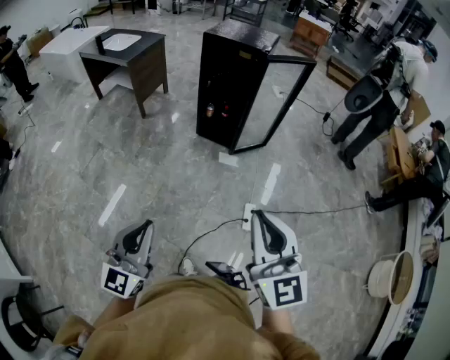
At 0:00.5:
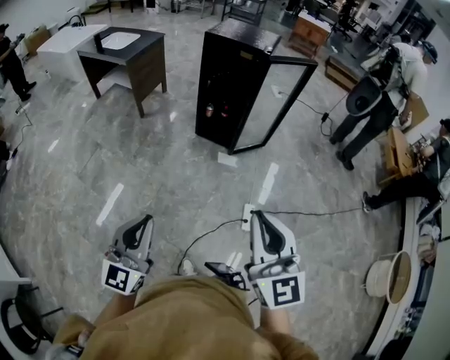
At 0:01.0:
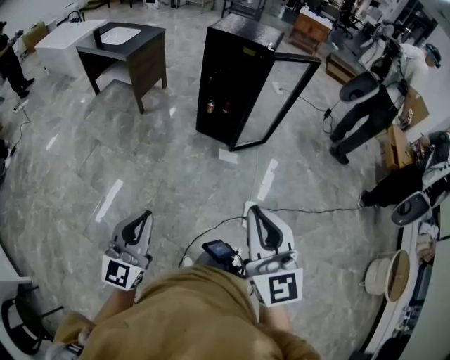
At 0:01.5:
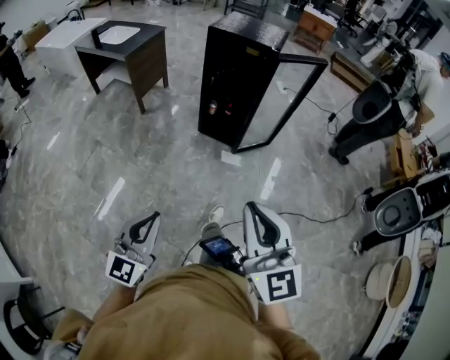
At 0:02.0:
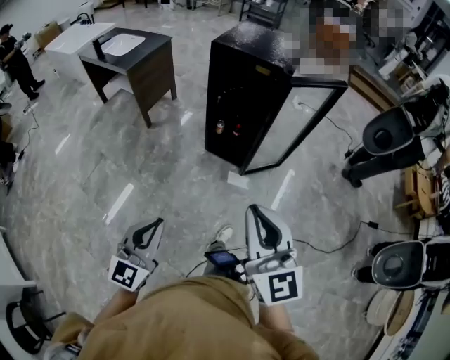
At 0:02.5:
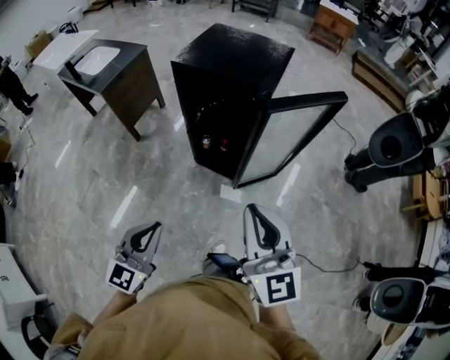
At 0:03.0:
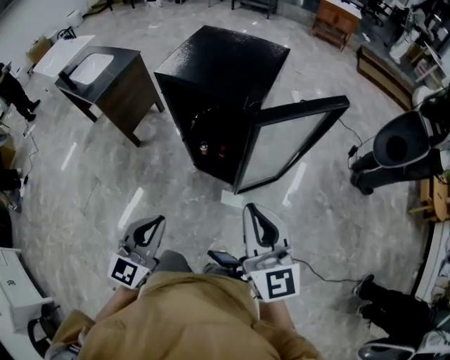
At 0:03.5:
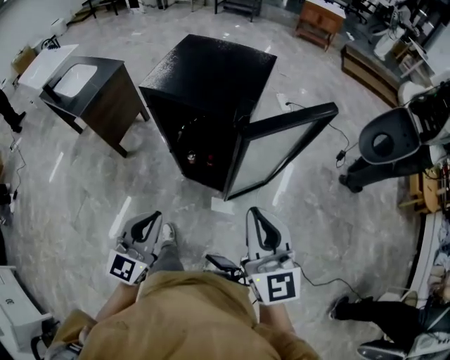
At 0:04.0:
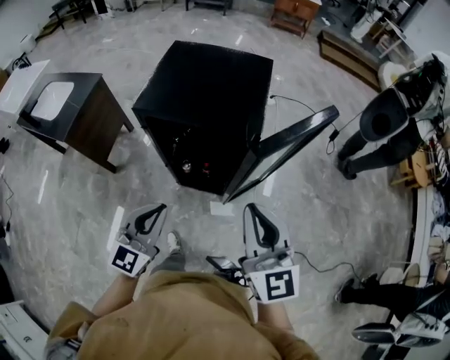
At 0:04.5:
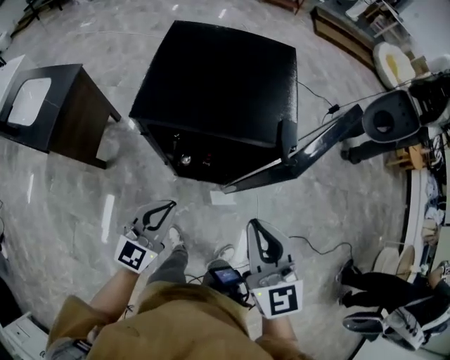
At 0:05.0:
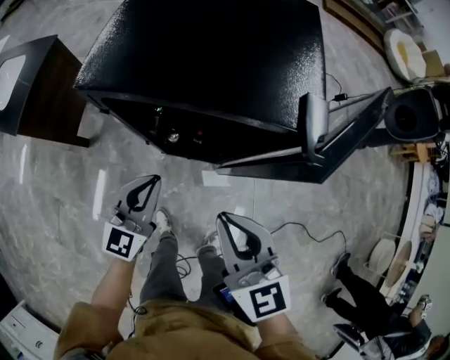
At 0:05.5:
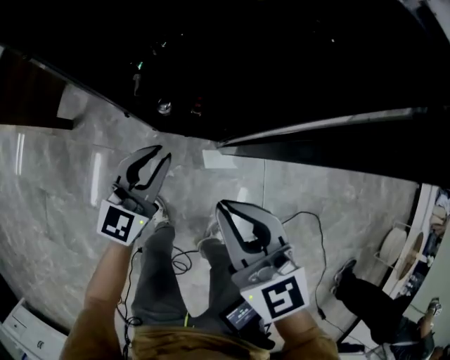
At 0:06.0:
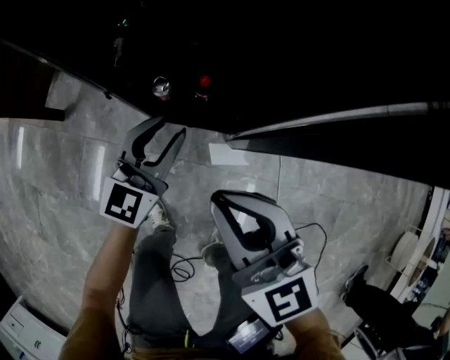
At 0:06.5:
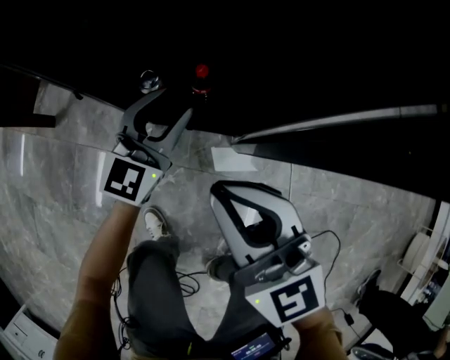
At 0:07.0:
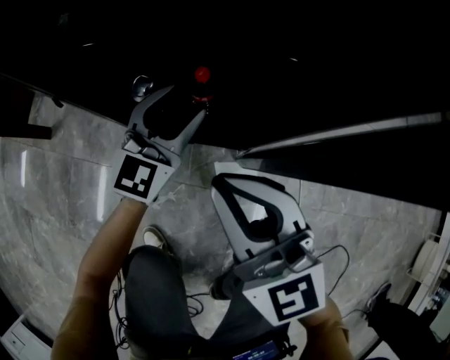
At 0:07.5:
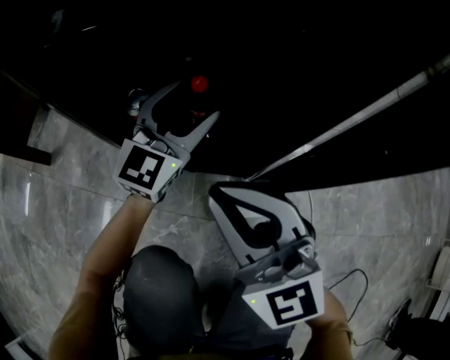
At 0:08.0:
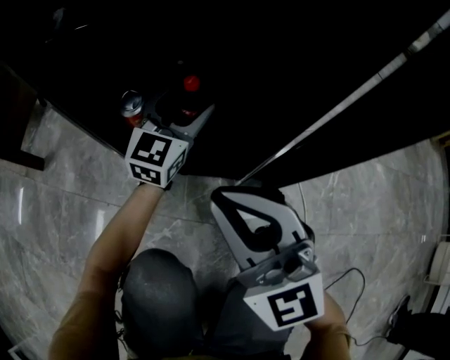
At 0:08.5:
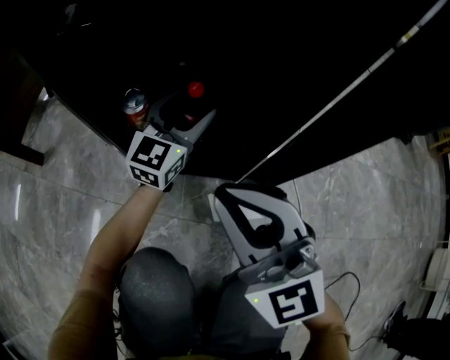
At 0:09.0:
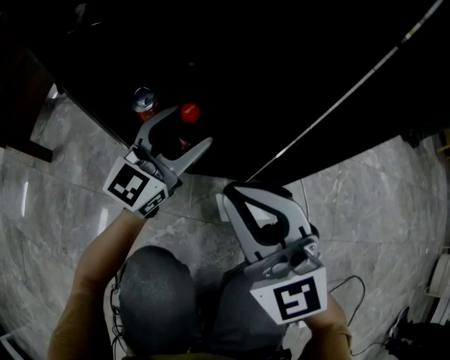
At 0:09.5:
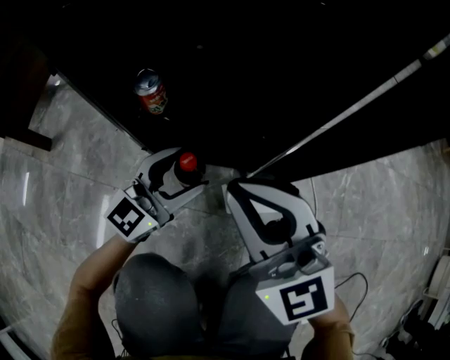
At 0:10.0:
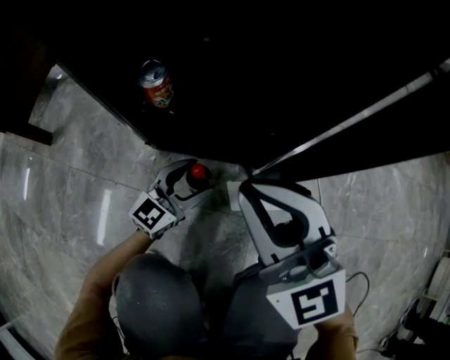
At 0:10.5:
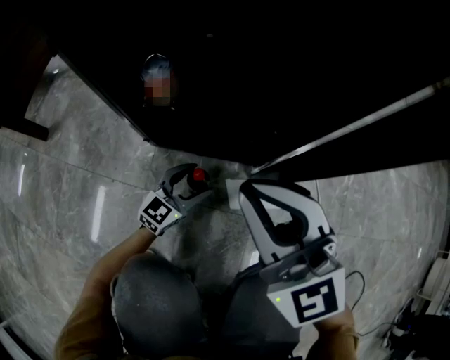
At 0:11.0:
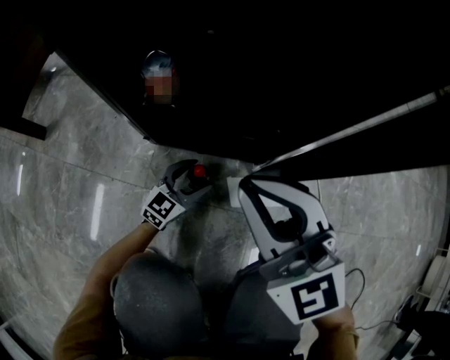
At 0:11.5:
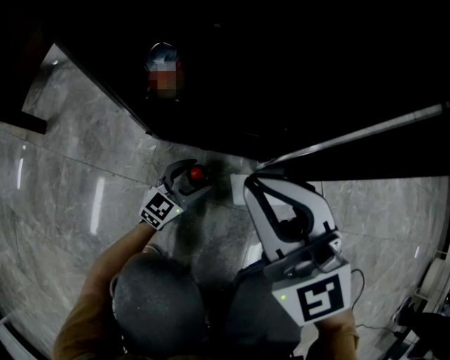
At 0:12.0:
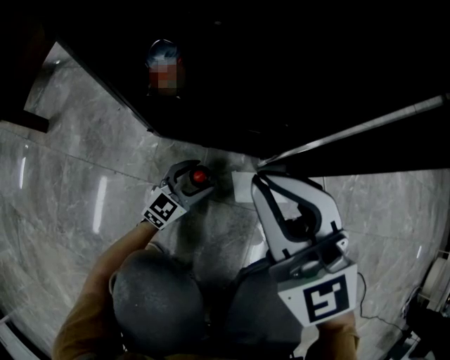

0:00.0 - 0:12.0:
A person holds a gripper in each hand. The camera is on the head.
0:00.0 - 0:02.0: The grippers both shift forward by roughly 30 cm.
0:02.0 - 0:04.0: Both grippers are carried forward, approximately 50 cm.
0:04.0 - 0:06.0: The left gripper travels downward and forward by roughly 50 cm, and opens its fingers. The right gripper travels downward by approximately 50 cm.
0:06.0 - 0:08.0: The right gripper is displaced downward by some 25 cm, and turns by some 20 degrees. The left gripper travels downward and forward by about 25 cm, and opens its fingers.
0:08.0 - 0:10.0: The left gripper shifts roughly 25 cm backward and downward, and turns by approximately 20 degrees.
0:10.0 - 0:12.0: The left gripper moves downward, some 10 cm.

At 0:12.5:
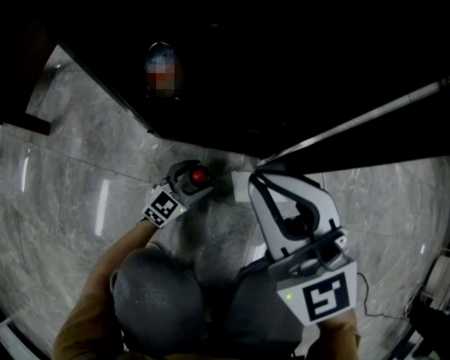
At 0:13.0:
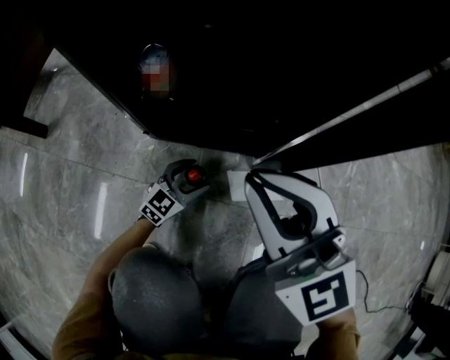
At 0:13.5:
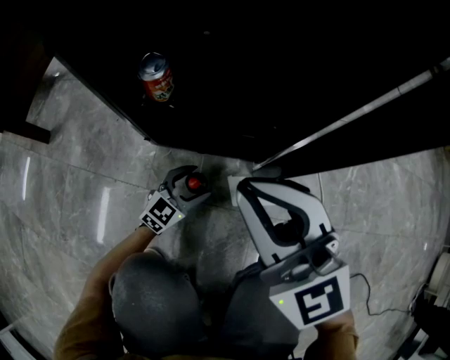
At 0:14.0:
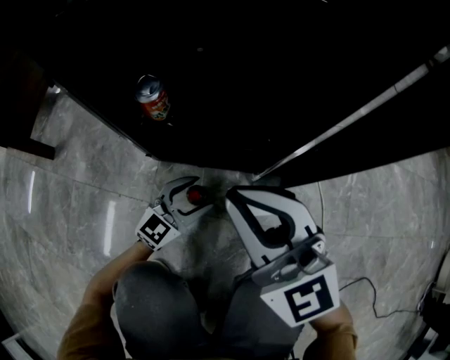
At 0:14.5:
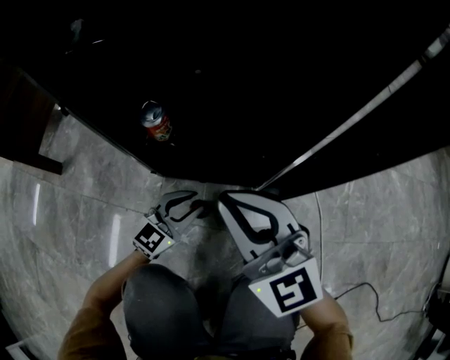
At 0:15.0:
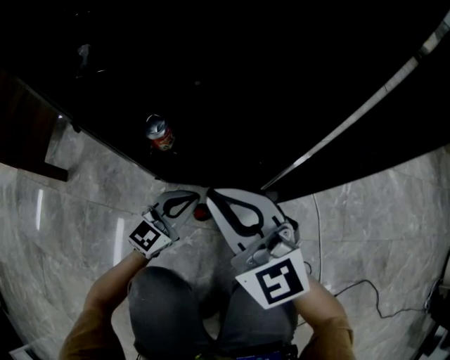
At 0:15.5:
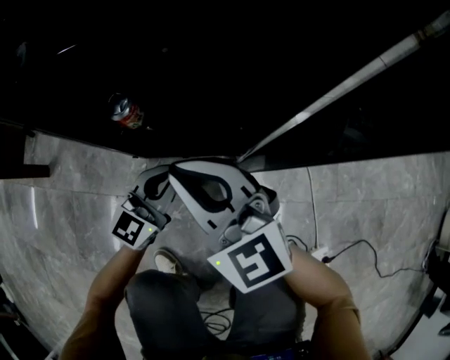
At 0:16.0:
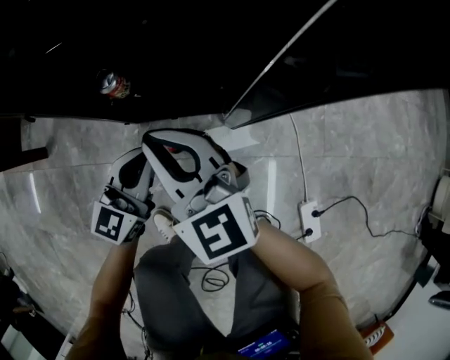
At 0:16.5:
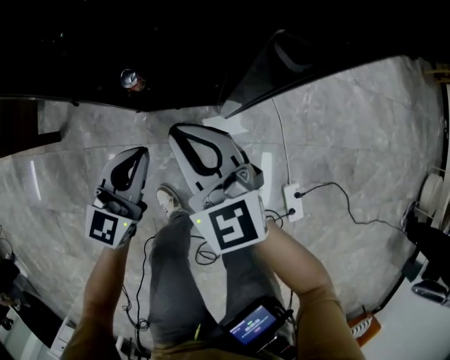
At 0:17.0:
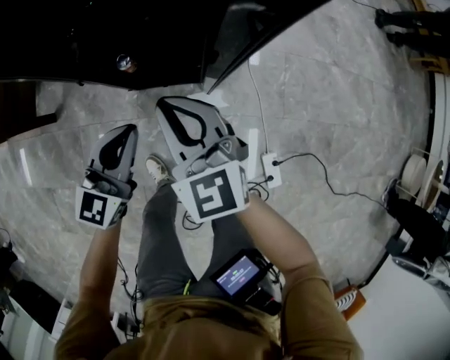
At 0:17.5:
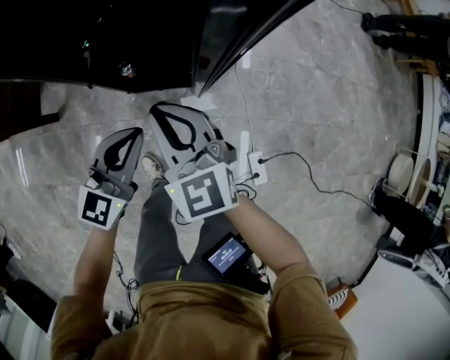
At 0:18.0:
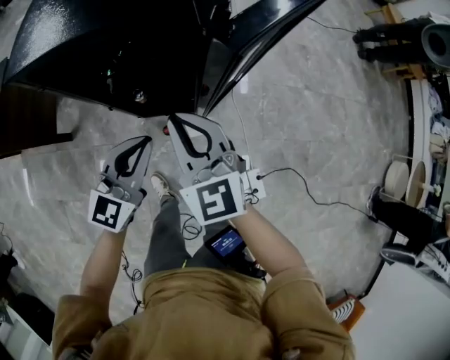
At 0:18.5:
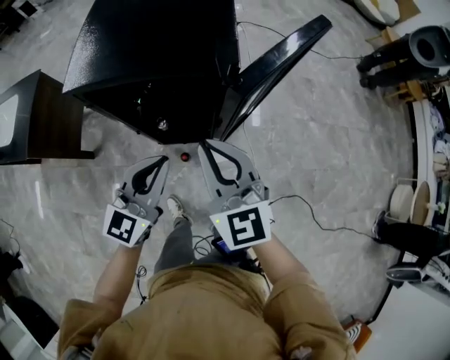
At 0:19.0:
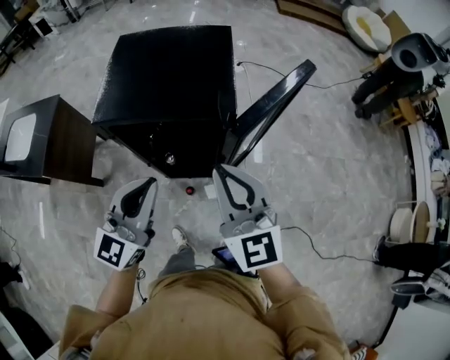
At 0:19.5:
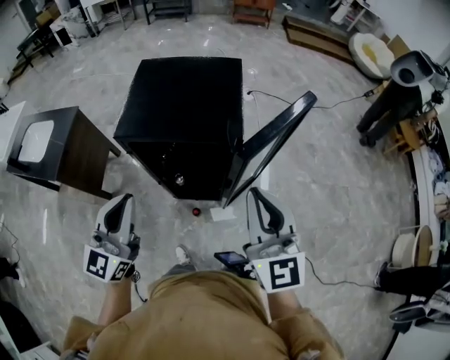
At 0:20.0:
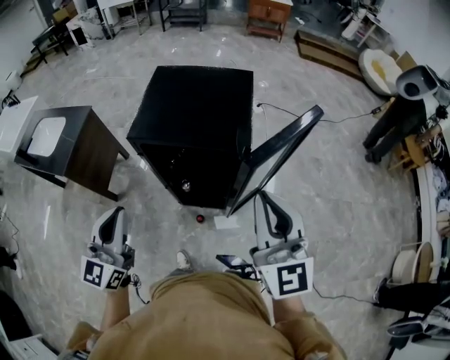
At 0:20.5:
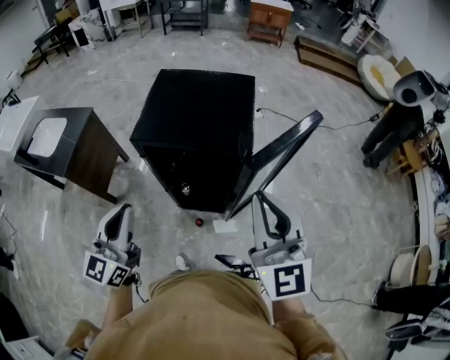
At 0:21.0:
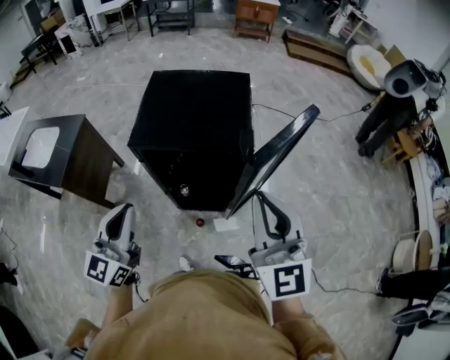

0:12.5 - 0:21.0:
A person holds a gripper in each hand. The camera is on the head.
0:12.5 - 0:14.5: The left gripper is displaced upward by approximately 15 cm, and closes its fingers.
0:14.5 - 0:16.5: The left gripper heads upward, covering some 35 cm, and closes; the right gripper moves upward, about 15 cm.
0:16.5 - 0:19.0: Both grippers move upward, roughly 50 cm. The right gripper turns by some 20 degrees.
0:19.0 - 0:21.0: The left gripper moves to the left, about 10 cm; the right gripper goes approximately 10 cm upward.

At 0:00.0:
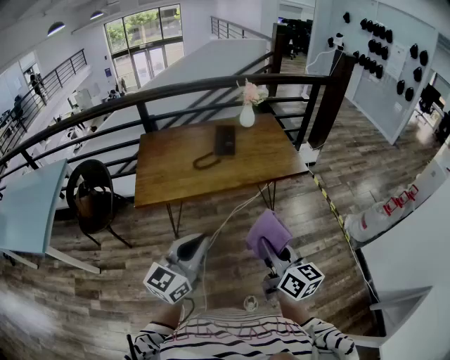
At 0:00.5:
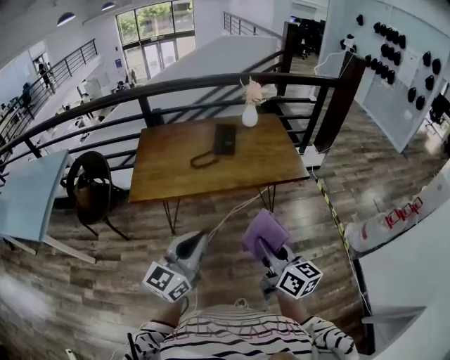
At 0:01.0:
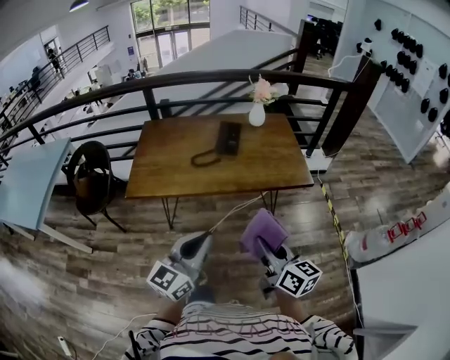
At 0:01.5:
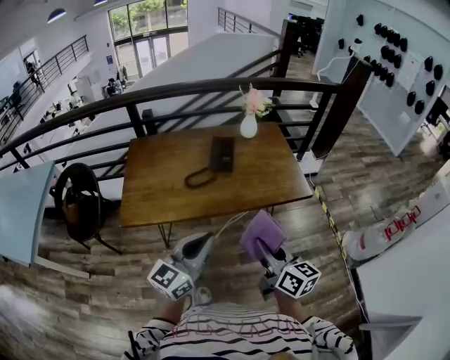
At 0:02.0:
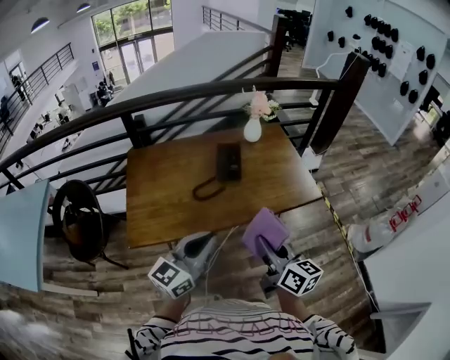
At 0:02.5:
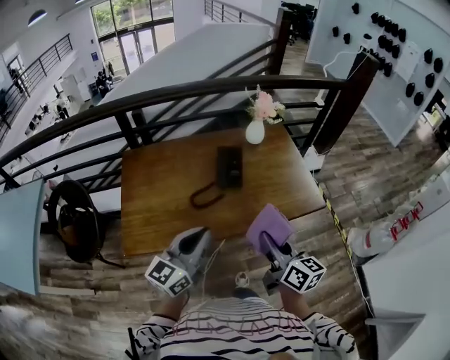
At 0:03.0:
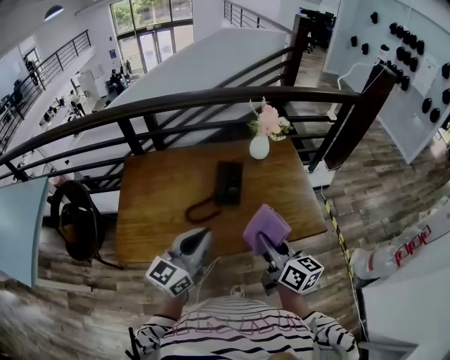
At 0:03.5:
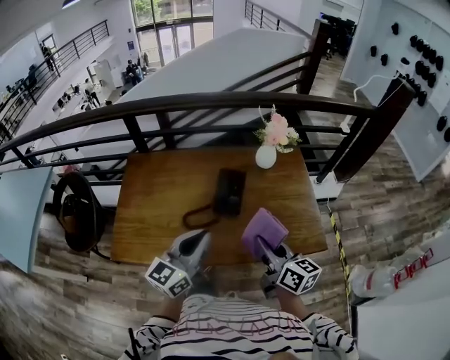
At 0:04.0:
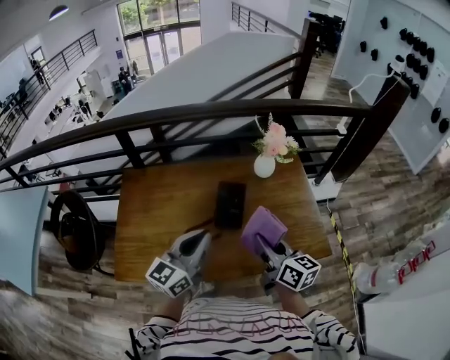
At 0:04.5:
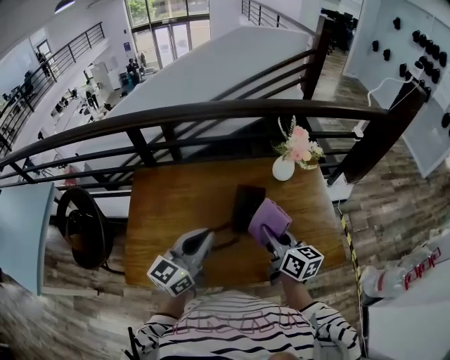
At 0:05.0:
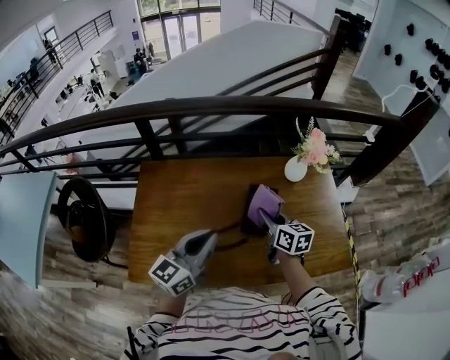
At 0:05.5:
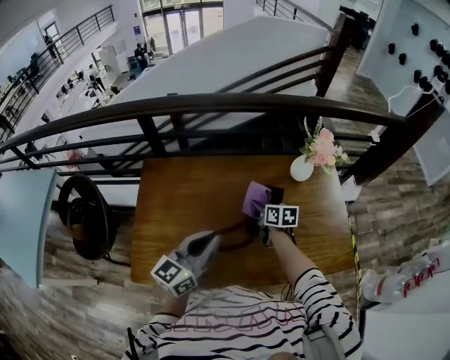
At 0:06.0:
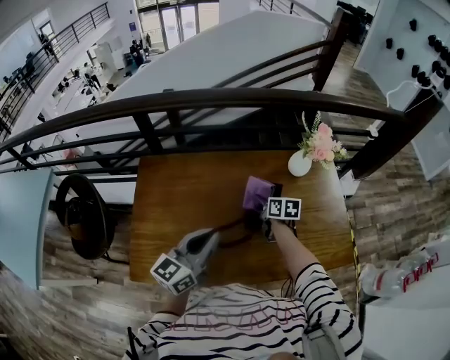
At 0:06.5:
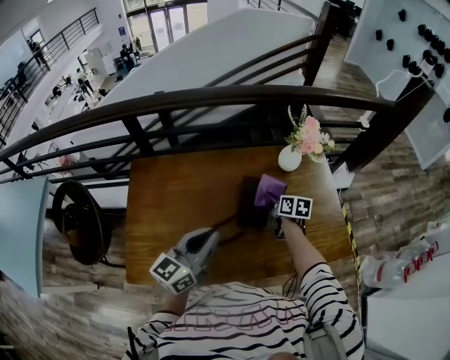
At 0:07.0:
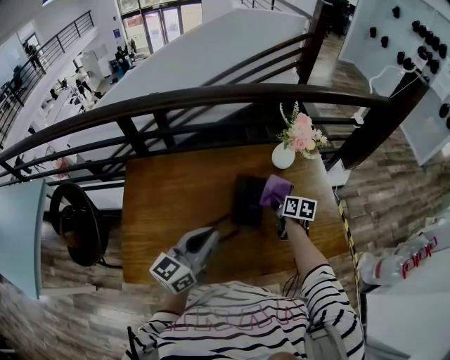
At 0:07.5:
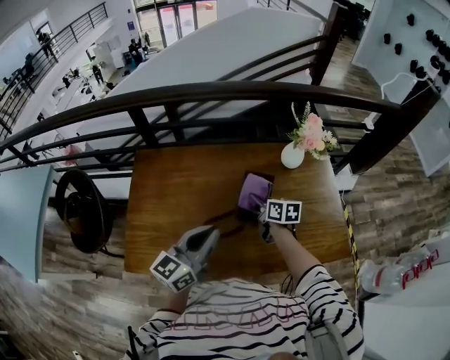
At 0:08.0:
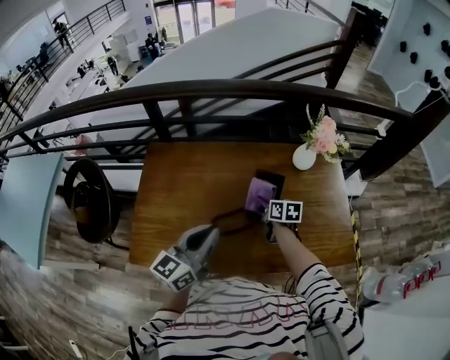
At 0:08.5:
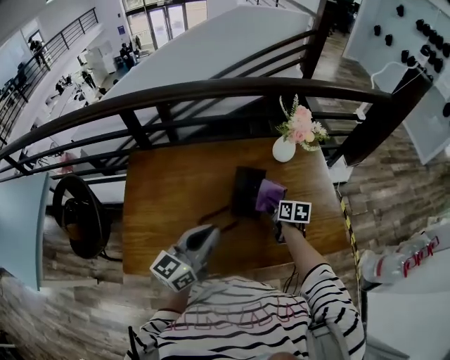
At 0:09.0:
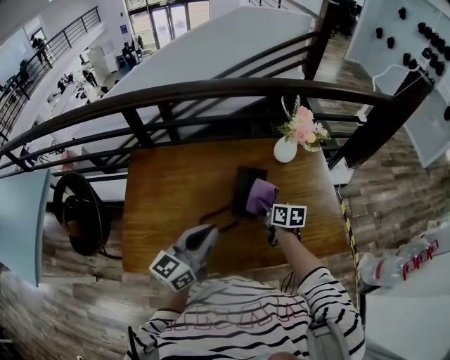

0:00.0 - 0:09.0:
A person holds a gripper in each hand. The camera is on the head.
0:00.0 - 0:02.0: The grippers both shift forward by roughly 30 cm.
0:02.0 - 0:04.5: The grippers both shift forward by approximately 40 cm.
0:04.5 - 0:07.0: The right gripper travels downward and forward by approximately 20 cm, and rotates some 30 degrees.
0:07.0 - 0:09.0: The right gripper goes left and right, some 10 cm each way, reversing 2 times.
